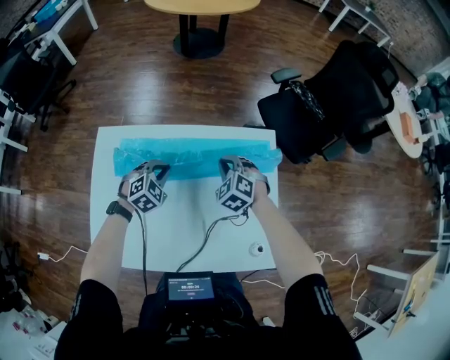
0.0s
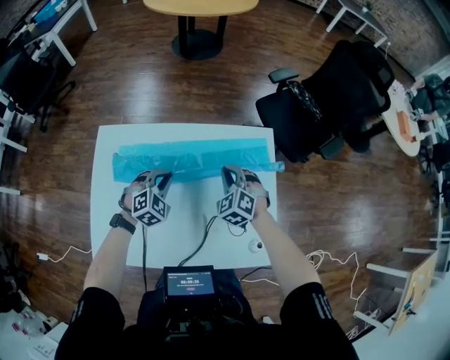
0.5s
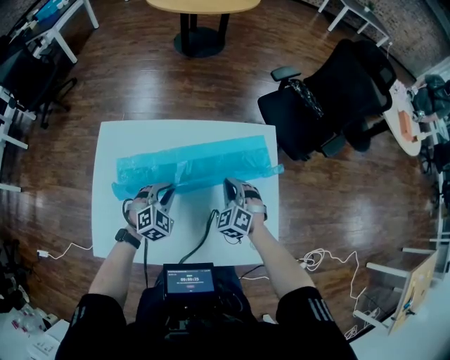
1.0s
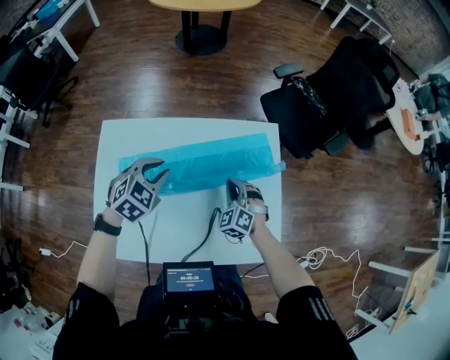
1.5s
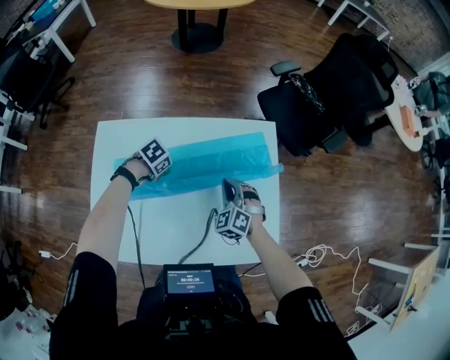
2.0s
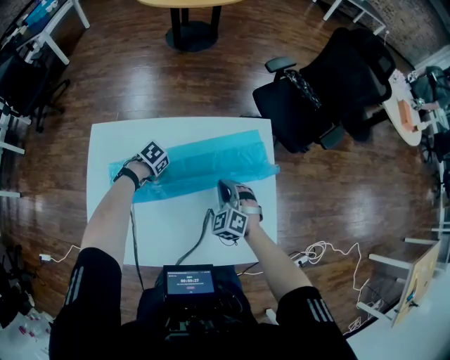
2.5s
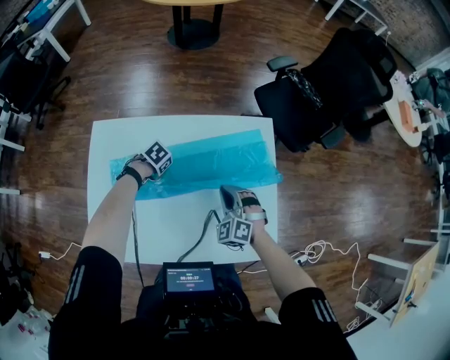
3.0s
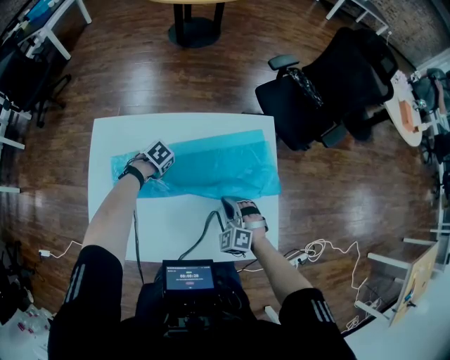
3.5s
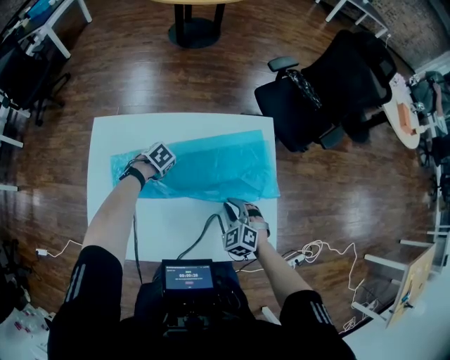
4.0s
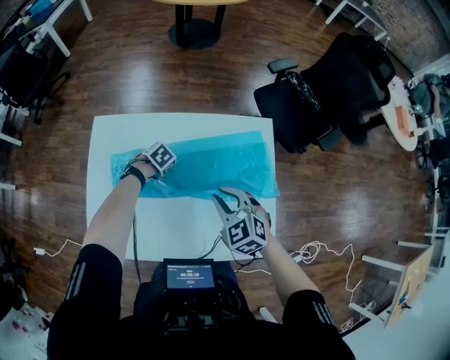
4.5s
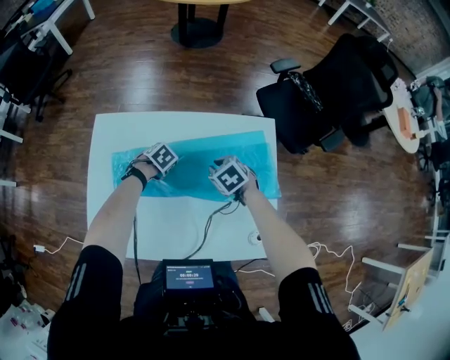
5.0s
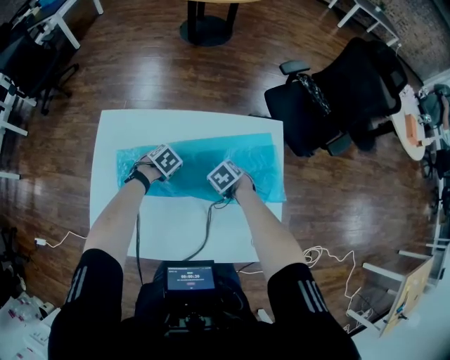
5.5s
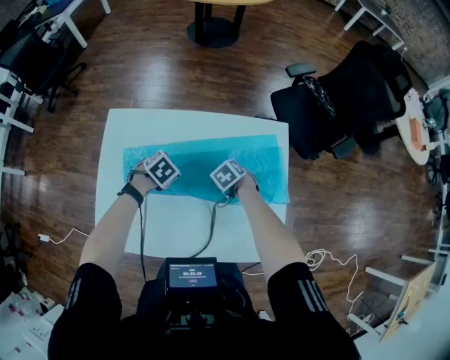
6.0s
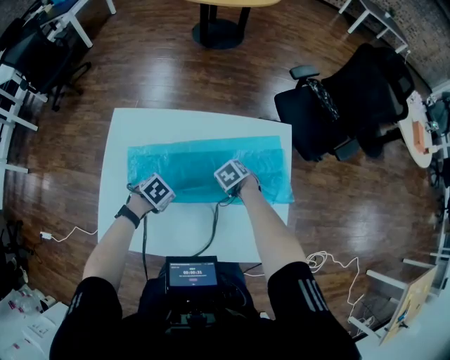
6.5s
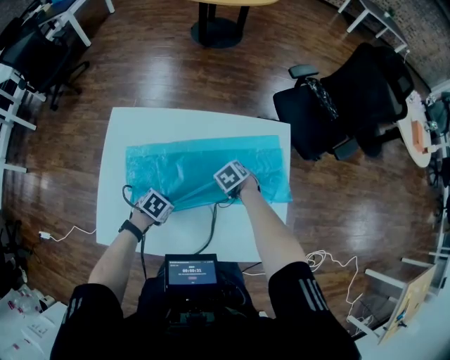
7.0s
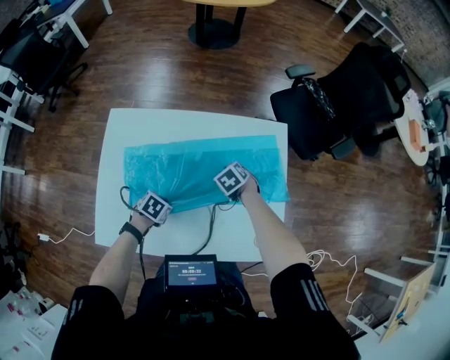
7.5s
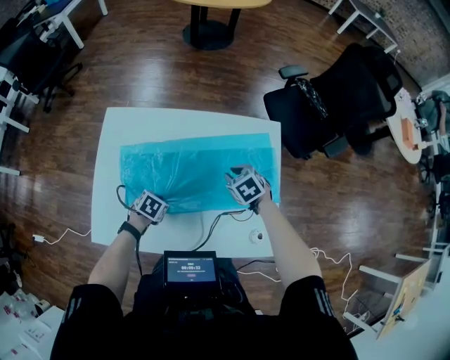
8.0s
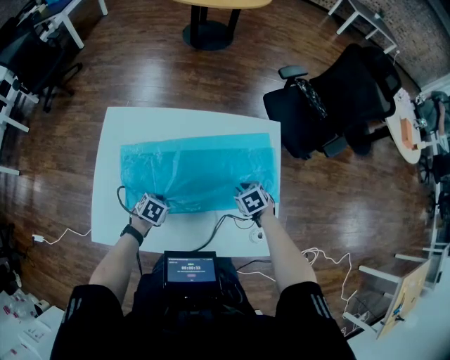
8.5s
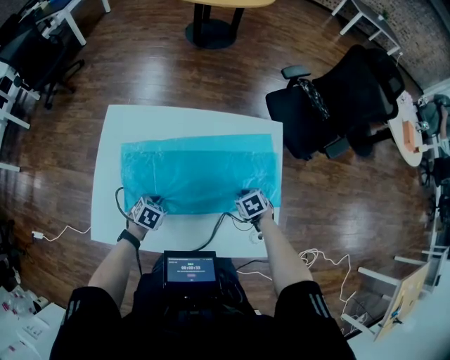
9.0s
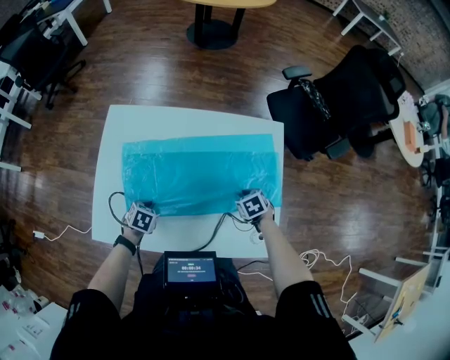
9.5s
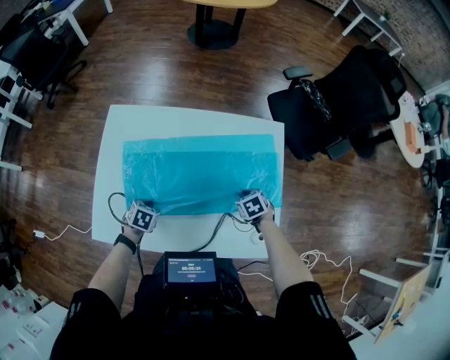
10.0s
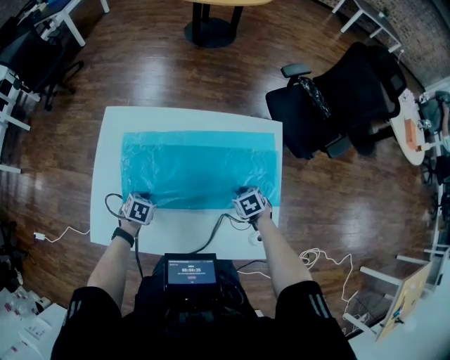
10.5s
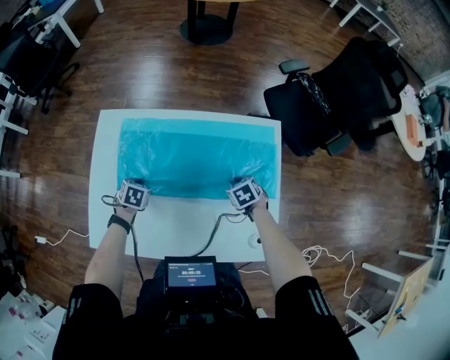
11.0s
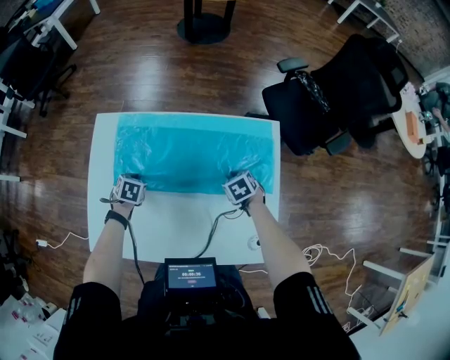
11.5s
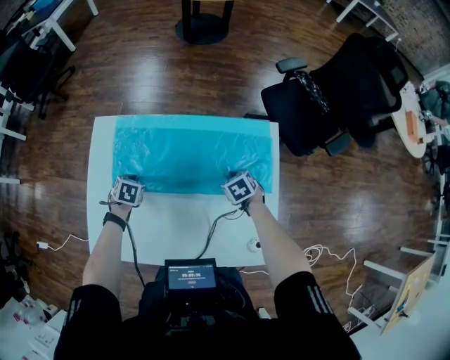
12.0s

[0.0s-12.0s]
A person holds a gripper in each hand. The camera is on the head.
0.0s to 2.0s: The left gripper moves downward, approximately 5 cm, and turns by some 50 degrees, while the right gripper ends up about 10 cm from where it was.
2.0s to 4.0s: The right gripper changes place by roughly 10 cm.
4.0s to 6.0s: The left gripper shifts approximately 5 cm upward; the right gripper changes place by some 15 cm, and turns by approximately 40 degrees.
6.0s to 8.0s: The left gripper moves roughly 15 cm; the right gripper heads upward, covering about 10 cm.
8.0s to 10.0s: The right gripper shifts by approximately 15 cm.
10.0s to 12.0s: The grippers both shift forward by roughly 15 cm.

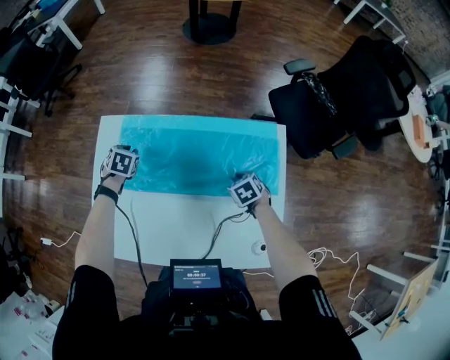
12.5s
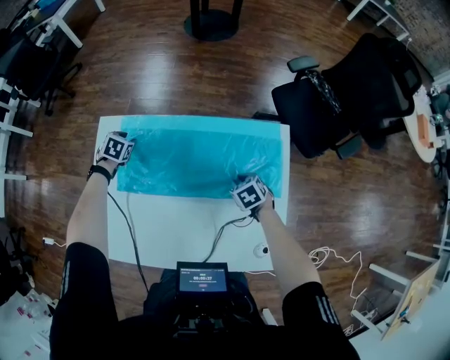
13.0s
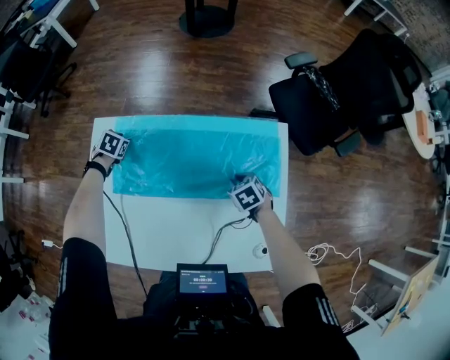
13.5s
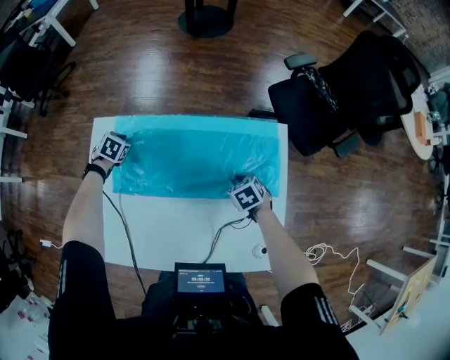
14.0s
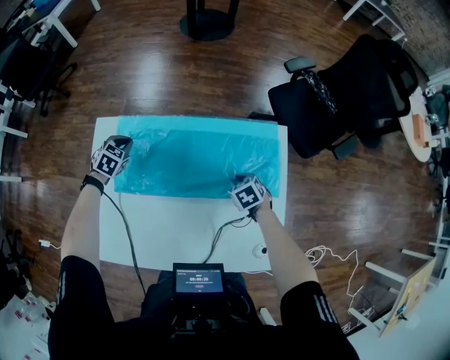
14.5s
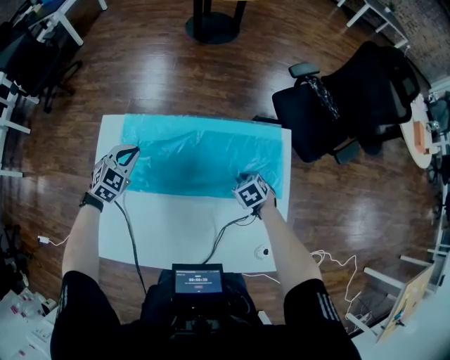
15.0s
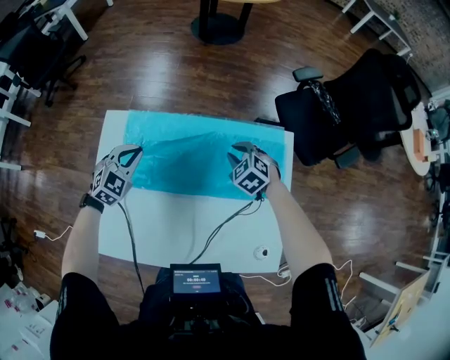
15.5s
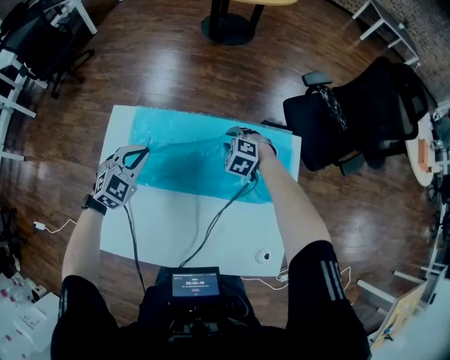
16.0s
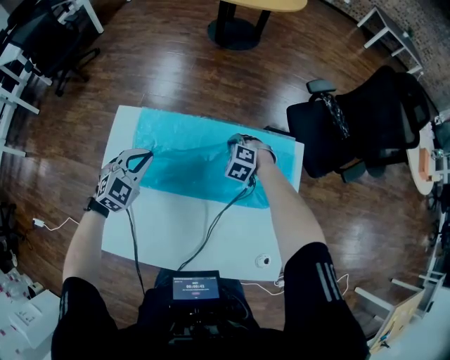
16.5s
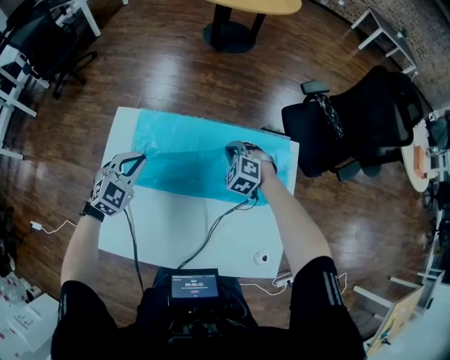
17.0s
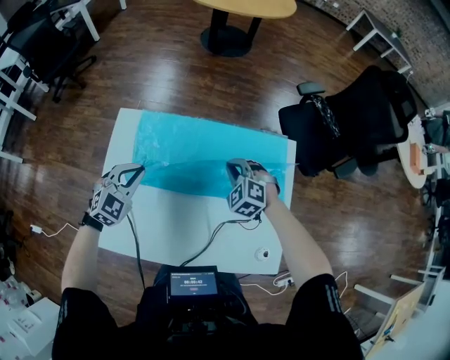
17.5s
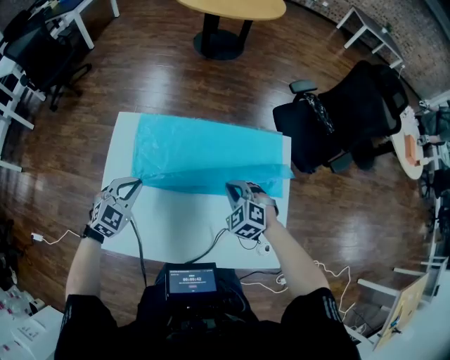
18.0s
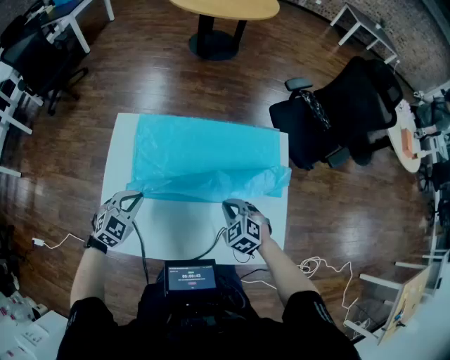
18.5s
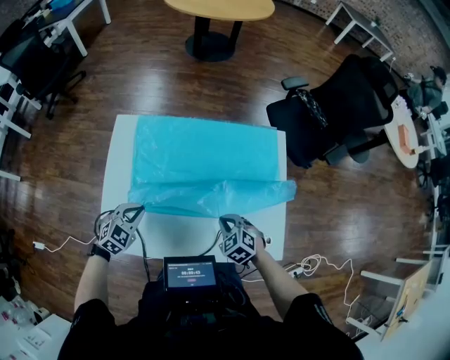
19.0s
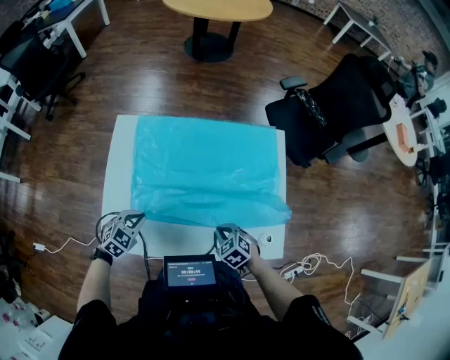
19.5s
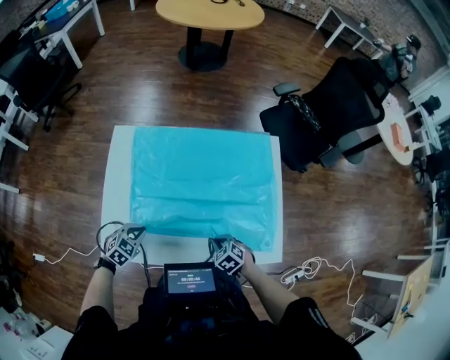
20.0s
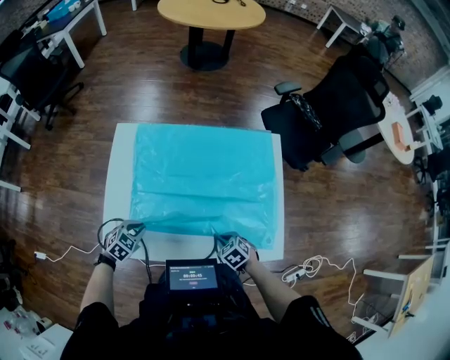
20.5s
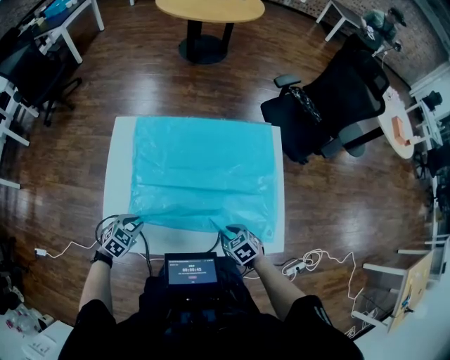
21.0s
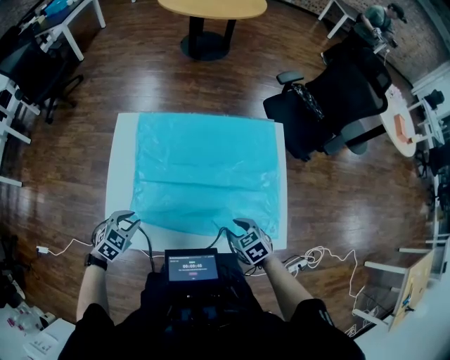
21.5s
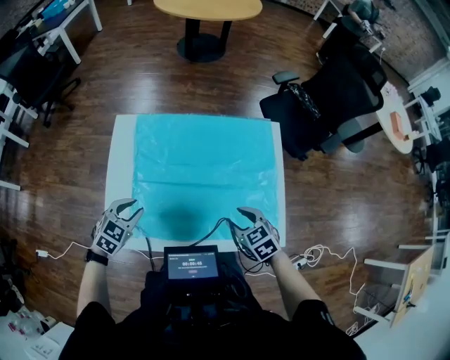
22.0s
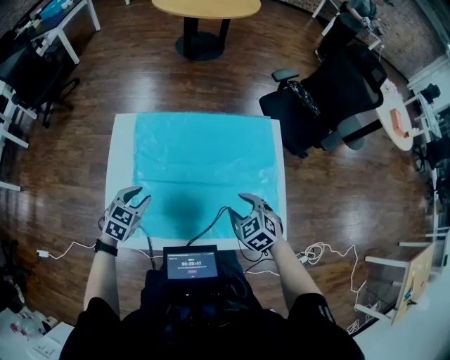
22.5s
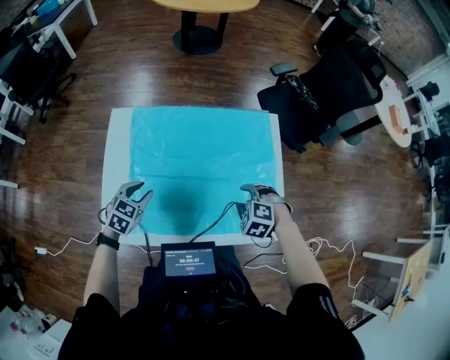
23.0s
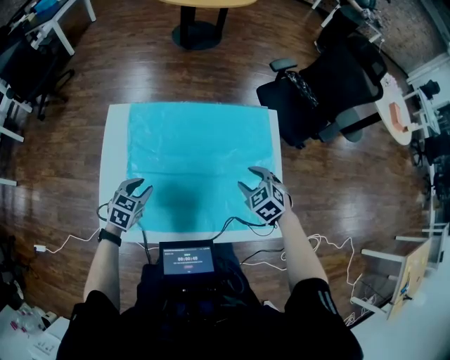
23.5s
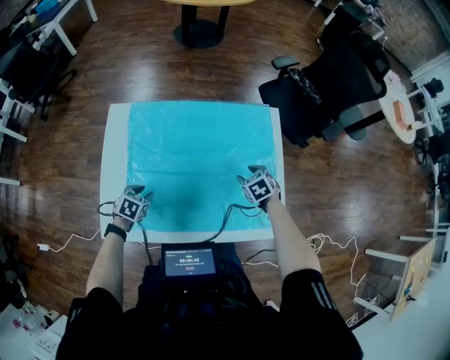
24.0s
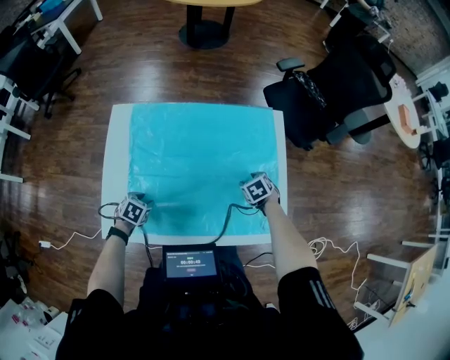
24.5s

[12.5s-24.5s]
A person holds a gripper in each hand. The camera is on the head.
12.5s to 14.5s: The left gripper swivels some 20 degrees, and opens, then closes again.
14.5s to 16.5s: The left gripper shifts about 15 cm upward and backward, and turns by some 30 degrees; the right gripper shifts some 15 cm forward and to the left, twists some 50 degrees counterclockwise, seen from behind, and closes its fingers.
16.5s to 18.5s: The left gripper is displaced backward by about 15 cm; the right gripper shifts approximately 25 cm backward, and swivels about 30 degrees.
18.5s to 20.5s: The right gripper is displaced backward and downward by about 20 cm, and swivels about 30 degrees. The left gripper shifts roughly 15 cm downward and backward, and turns by roughly 20 degrees.
20.5s to 22.5s: Both grippers travel together upward and forward, about 15 cm. The left gripper opens its fingers; the right gripper turns by roughly 20 degrees, and opens its fingers.
22.5s to 24.5s: The left gripper goes some 15 cm downward, and rotates roughly 30 degrees; the right gripper is displaced downward, forward and to the right by about 20 cm, and rotates approximately 30 degrees.

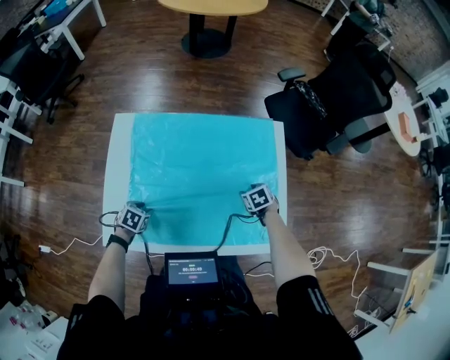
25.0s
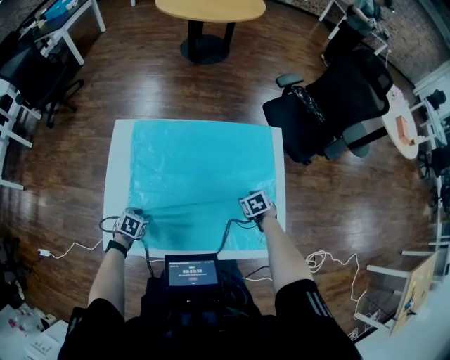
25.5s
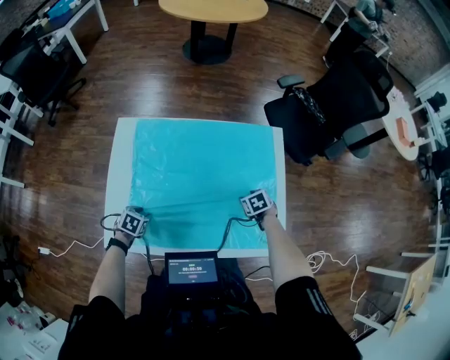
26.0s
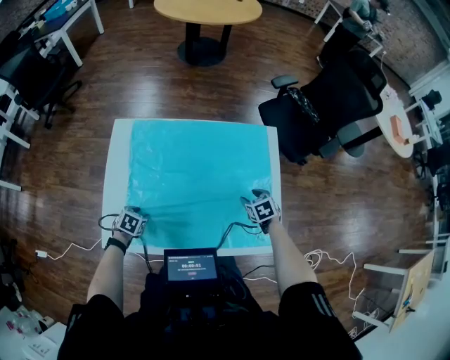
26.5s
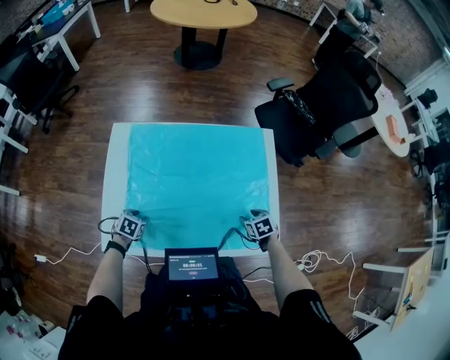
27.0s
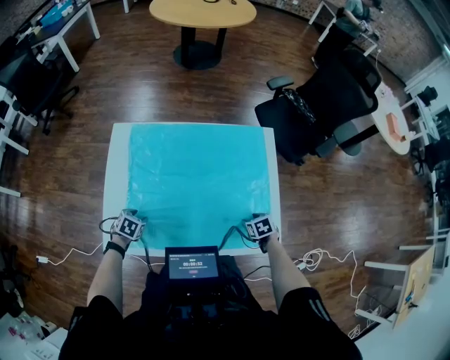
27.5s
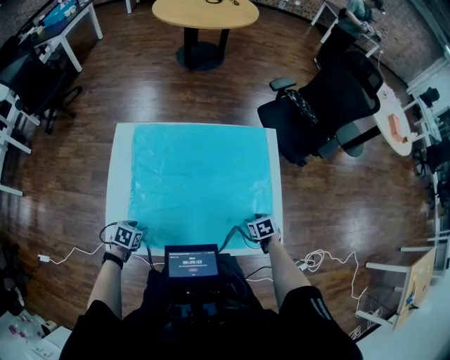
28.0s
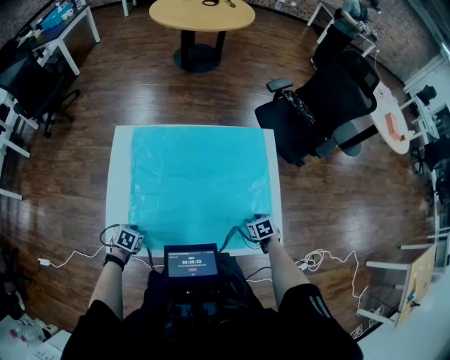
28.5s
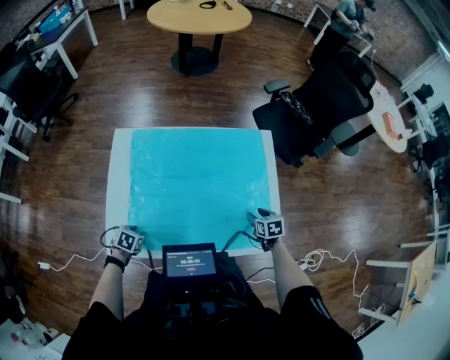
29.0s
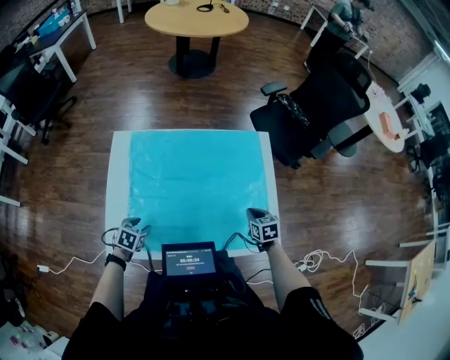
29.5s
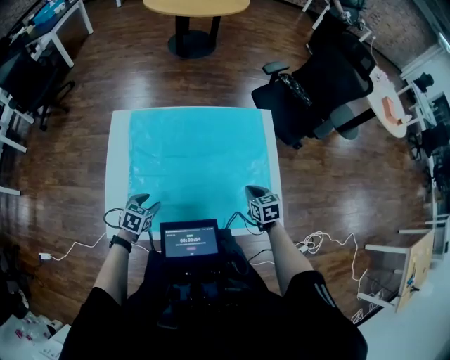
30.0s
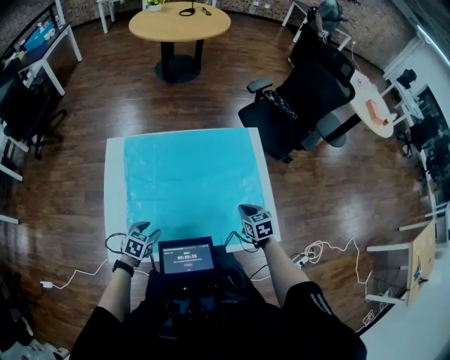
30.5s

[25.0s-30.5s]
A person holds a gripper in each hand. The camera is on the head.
25.0s to 27.0s: The right gripper goes roughly 10 cm backward.
27.0s to 28.5s: The left gripper shifts by roughly 5 cm.
28.5s to 30.5s: The right gripper heads upward and to the left, covering roughly 10 cm, swivels about 20 degrees, and closes up, while the left gripper travels to the right and upward by about 10 cm, and changes its angle by about 20 degrees.
